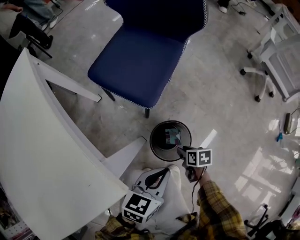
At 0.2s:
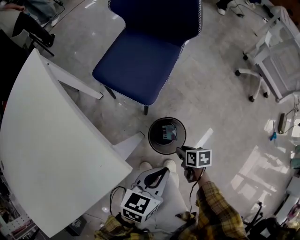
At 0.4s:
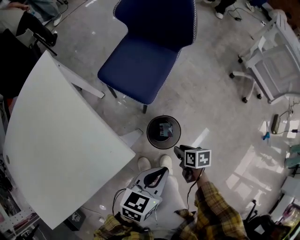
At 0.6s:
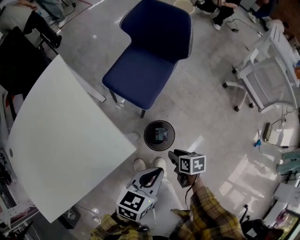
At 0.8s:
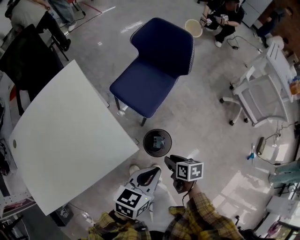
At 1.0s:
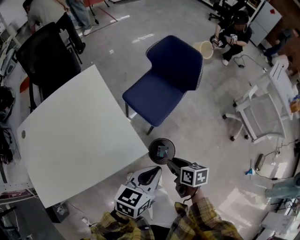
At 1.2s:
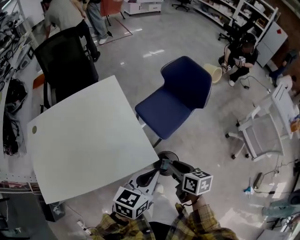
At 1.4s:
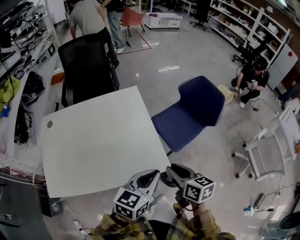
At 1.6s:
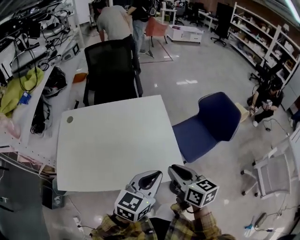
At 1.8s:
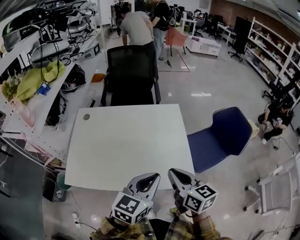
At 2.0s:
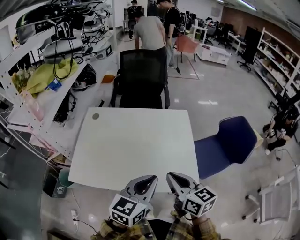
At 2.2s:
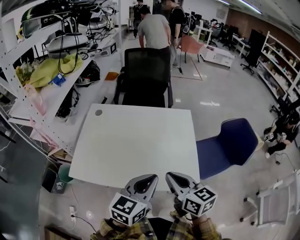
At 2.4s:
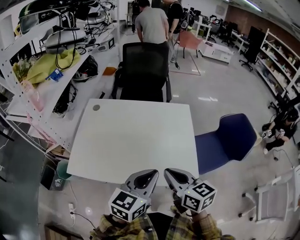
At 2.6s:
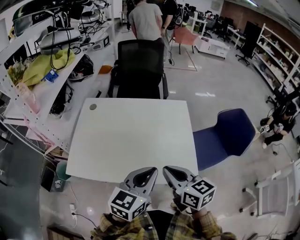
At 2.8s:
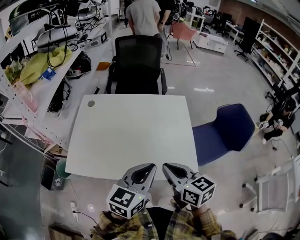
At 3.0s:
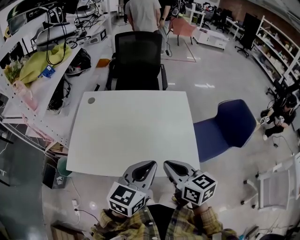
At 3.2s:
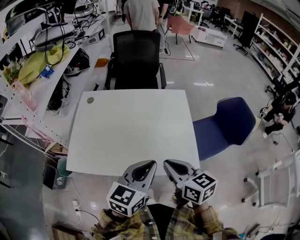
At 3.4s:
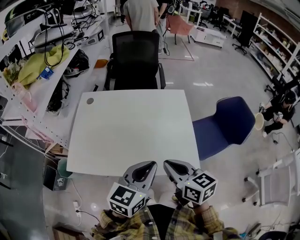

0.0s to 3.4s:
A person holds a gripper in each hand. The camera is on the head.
0.0s to 1.6s: The two grippers go roughly 60 cm upward. The left gripper changes its angle by roughly 40 degrees, while the right gripper tips its fingers upward by roughly 40 degrees.
1.6s to 3.4s: Both grippers move to the left, approximately 15 cm.

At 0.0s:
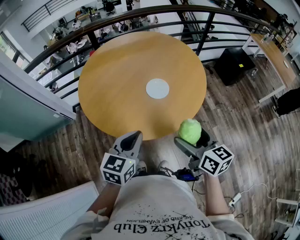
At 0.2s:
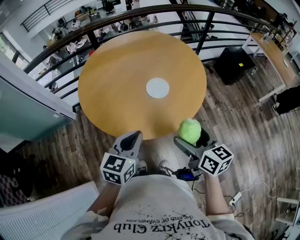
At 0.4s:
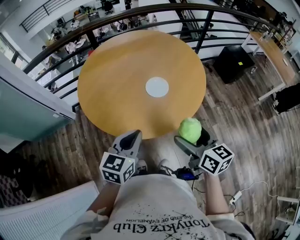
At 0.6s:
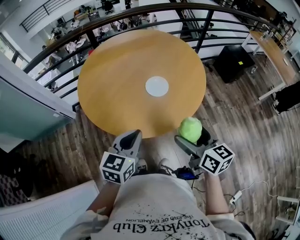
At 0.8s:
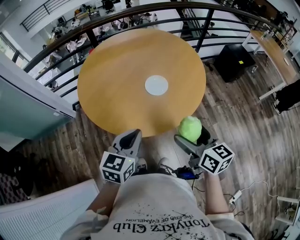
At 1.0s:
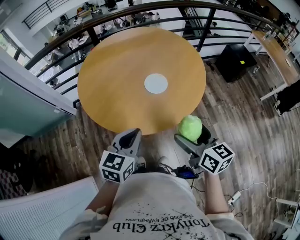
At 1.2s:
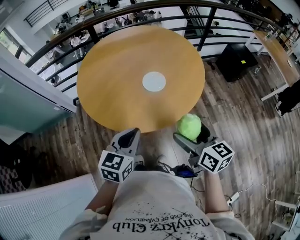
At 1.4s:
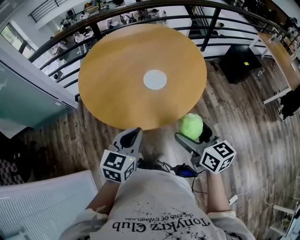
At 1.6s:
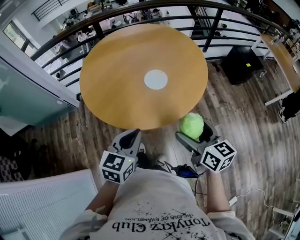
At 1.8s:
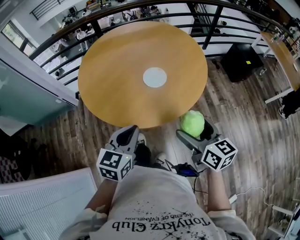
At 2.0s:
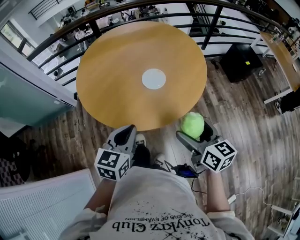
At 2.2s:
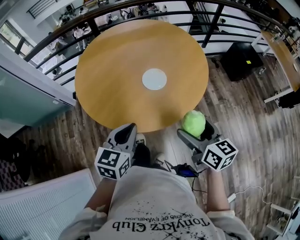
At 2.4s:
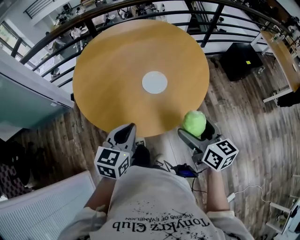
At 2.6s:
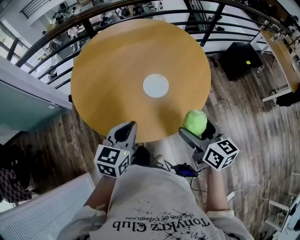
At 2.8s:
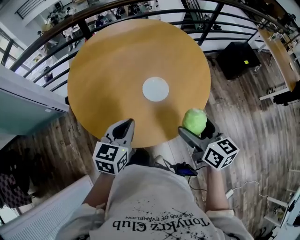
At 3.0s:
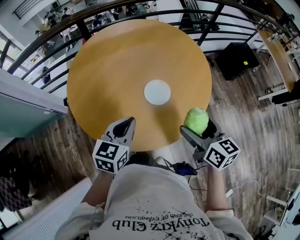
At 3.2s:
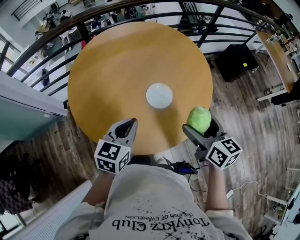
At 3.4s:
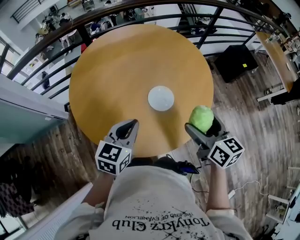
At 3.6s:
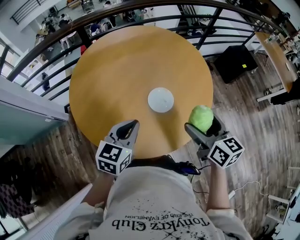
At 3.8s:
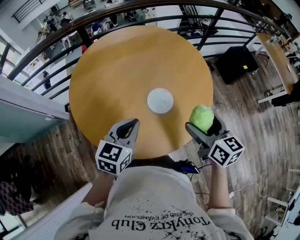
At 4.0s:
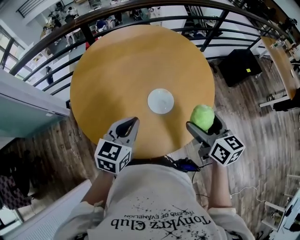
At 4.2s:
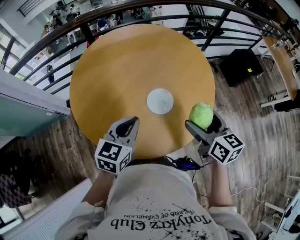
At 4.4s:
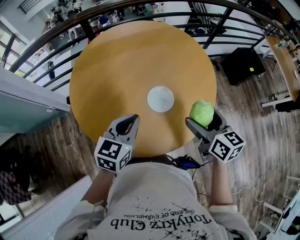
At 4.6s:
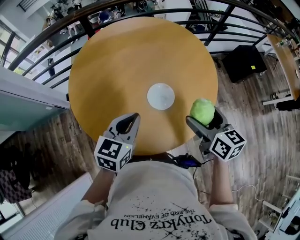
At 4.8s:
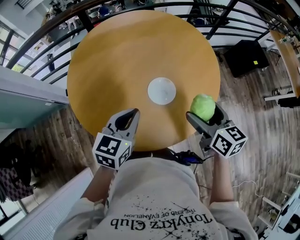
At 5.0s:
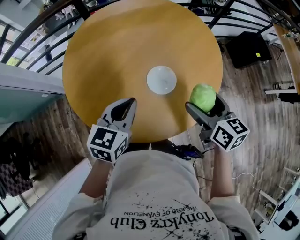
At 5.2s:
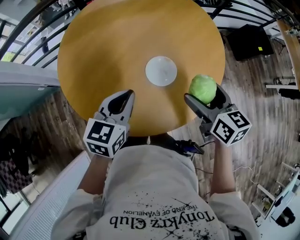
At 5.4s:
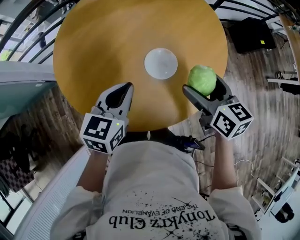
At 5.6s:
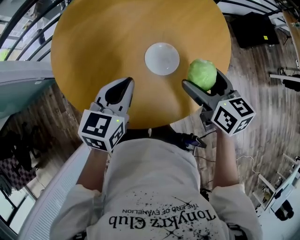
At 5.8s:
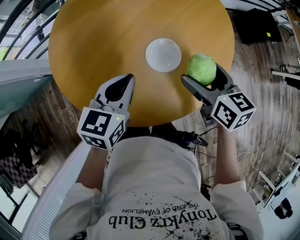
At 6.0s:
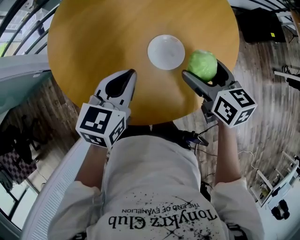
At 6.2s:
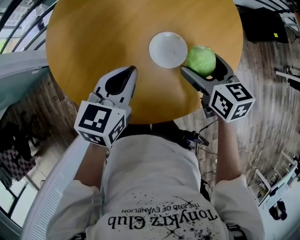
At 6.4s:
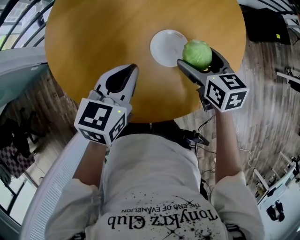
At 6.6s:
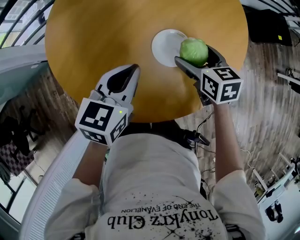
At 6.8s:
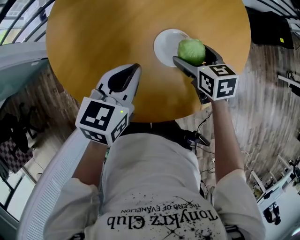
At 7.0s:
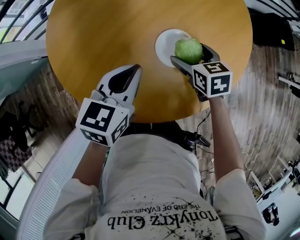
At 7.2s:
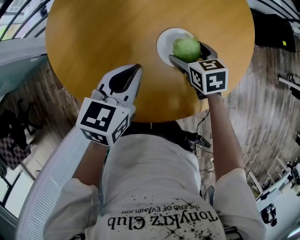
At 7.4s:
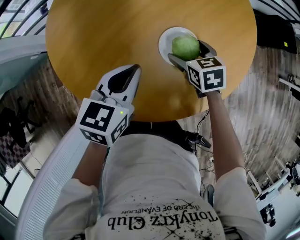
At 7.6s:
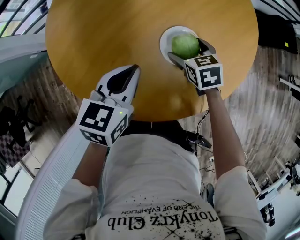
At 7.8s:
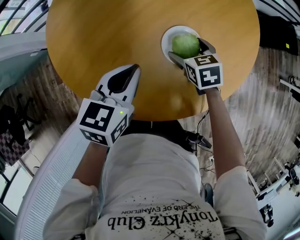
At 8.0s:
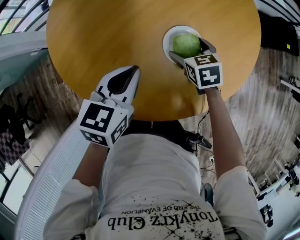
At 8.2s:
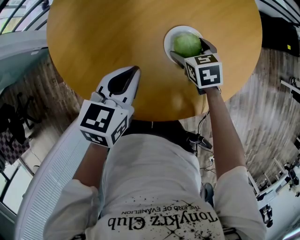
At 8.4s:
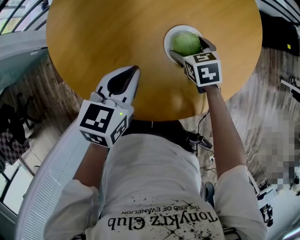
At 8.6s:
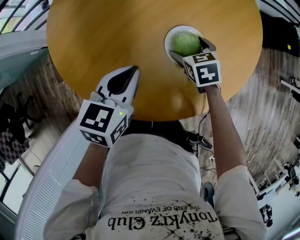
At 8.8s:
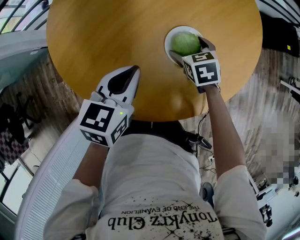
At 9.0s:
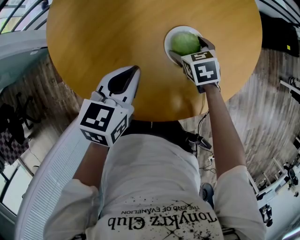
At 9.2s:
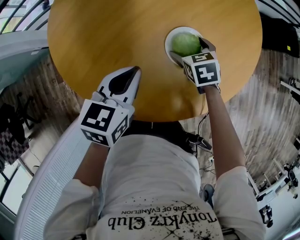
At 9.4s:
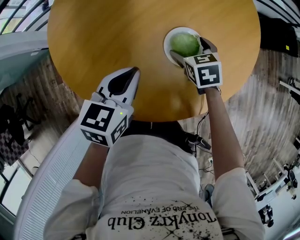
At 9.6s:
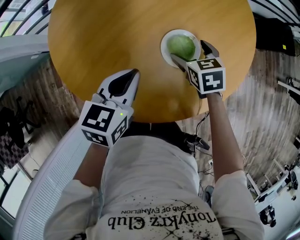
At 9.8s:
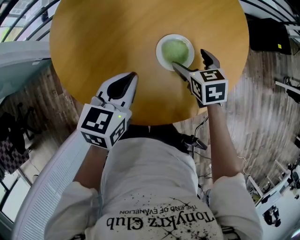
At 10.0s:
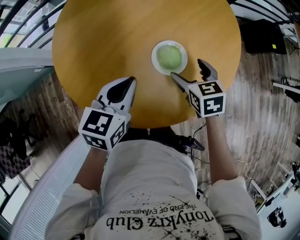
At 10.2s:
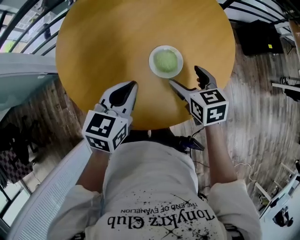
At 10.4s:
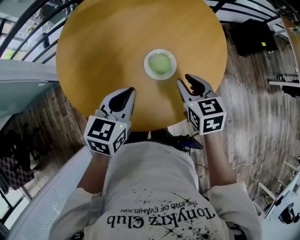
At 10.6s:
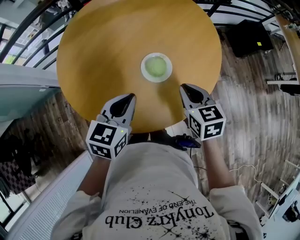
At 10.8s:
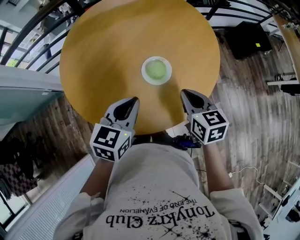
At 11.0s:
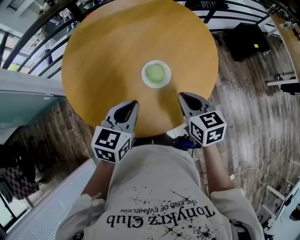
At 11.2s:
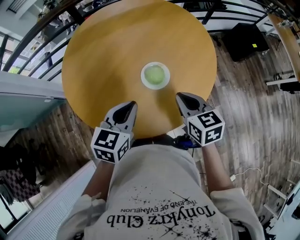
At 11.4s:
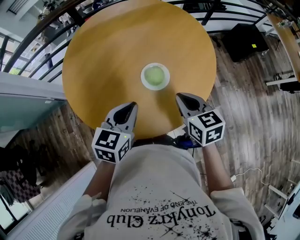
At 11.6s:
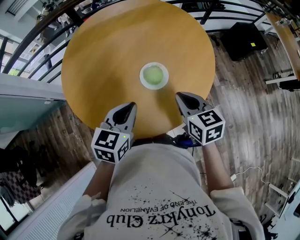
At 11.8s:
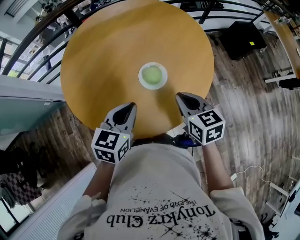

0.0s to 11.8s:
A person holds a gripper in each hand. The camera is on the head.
0.0s to 1.4s: The two grippers go about 5 cm to the right.
1.4s to 3.0s: The grippers both shift forward by about 20 cm.
3.0s to 4.4s: The right gripper goes roughly 10 cm forward. Meanwhile the left gripper heads forward, covering some 5 cm.
4.4s to 6.0s: The grippers both shift downward and forward by some 15 cm.
6.0s to 7.4s: The right gripper goes about 15 cm downward and to the left, and swivels some 20 degrees.
7.4s to 8.8s: There are only small adjustments of the grippers.
8.8s to 10.4s: The left gripper travels upward by some 5 cm, while the right gripper travels upward and backward by some 20 cm, changes its angle by about 20 degrees, and closes up.
10.4s to 11.8s: The right gripper goes roughly 5 cm backward. The left gripper changes place by about 5 cm.

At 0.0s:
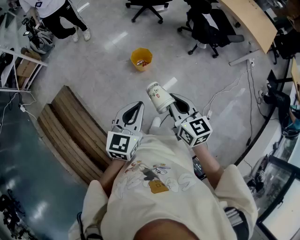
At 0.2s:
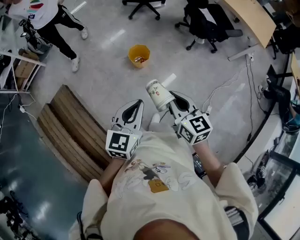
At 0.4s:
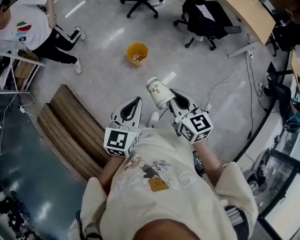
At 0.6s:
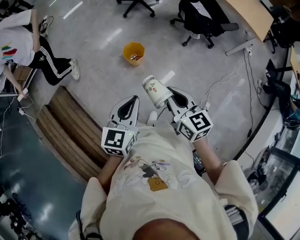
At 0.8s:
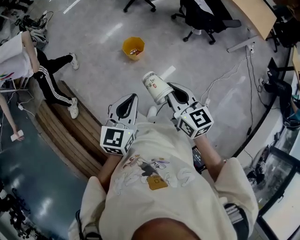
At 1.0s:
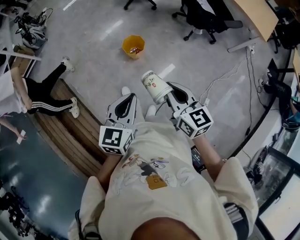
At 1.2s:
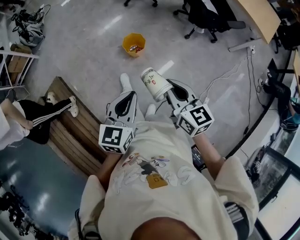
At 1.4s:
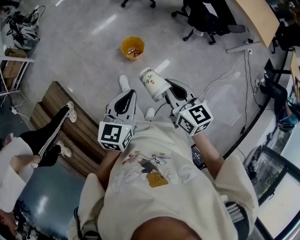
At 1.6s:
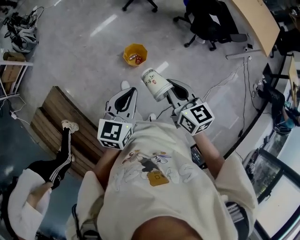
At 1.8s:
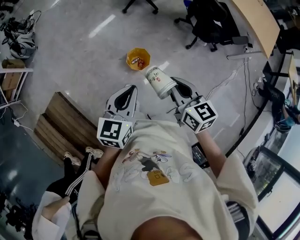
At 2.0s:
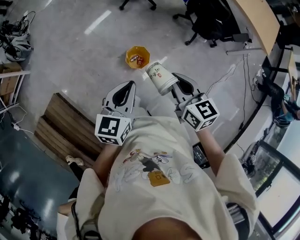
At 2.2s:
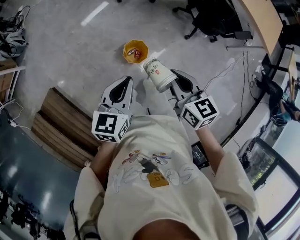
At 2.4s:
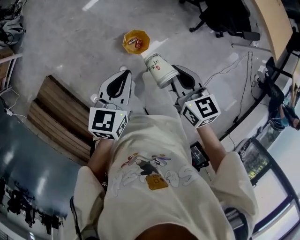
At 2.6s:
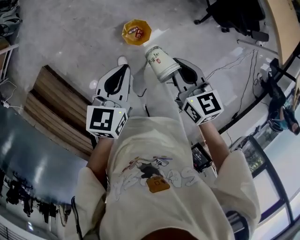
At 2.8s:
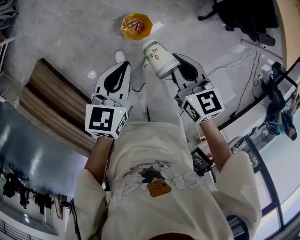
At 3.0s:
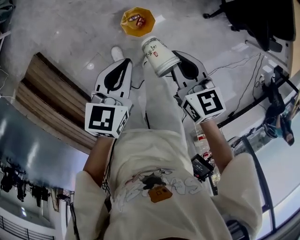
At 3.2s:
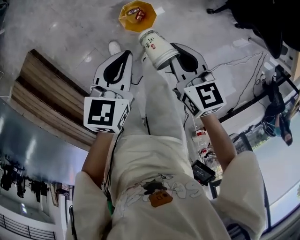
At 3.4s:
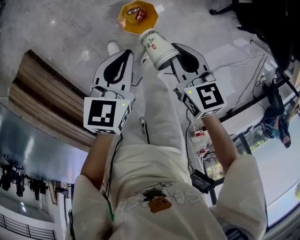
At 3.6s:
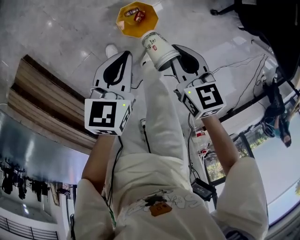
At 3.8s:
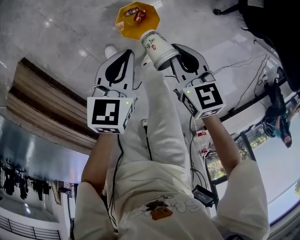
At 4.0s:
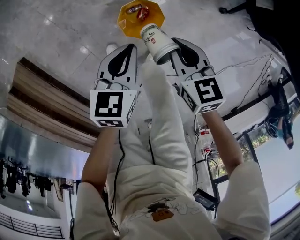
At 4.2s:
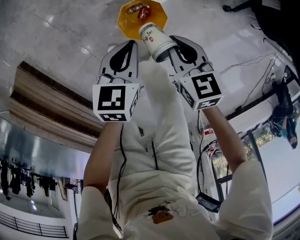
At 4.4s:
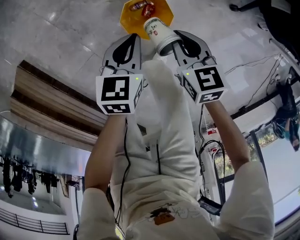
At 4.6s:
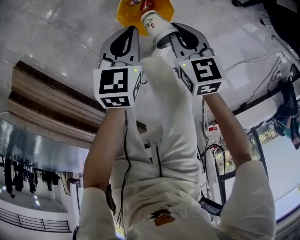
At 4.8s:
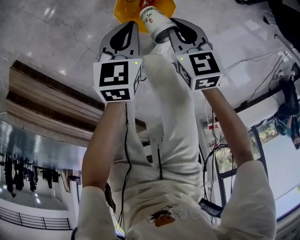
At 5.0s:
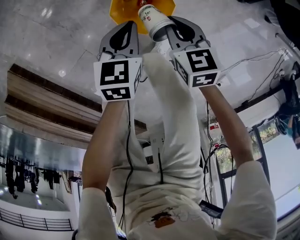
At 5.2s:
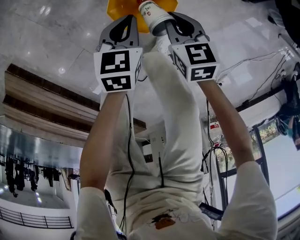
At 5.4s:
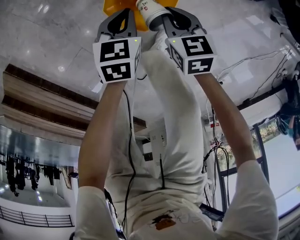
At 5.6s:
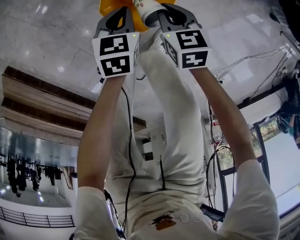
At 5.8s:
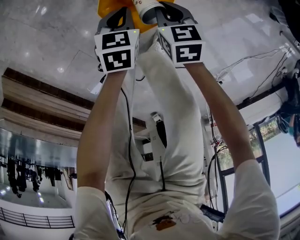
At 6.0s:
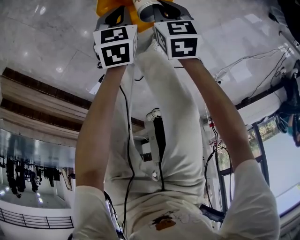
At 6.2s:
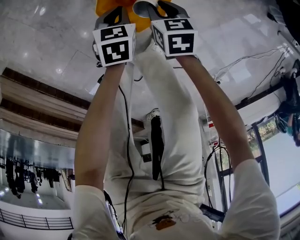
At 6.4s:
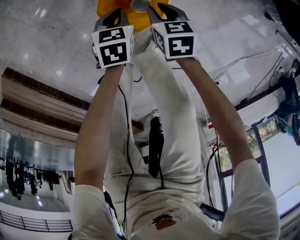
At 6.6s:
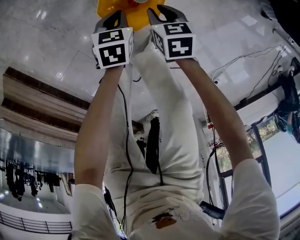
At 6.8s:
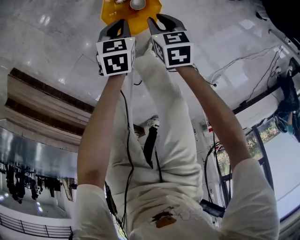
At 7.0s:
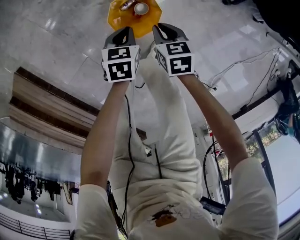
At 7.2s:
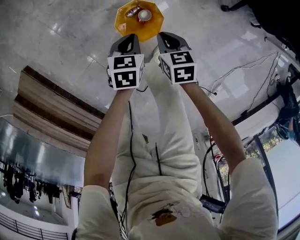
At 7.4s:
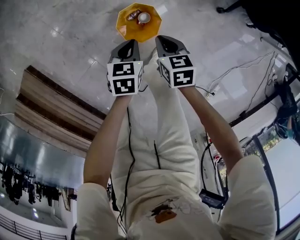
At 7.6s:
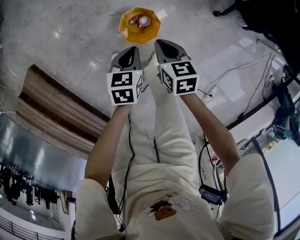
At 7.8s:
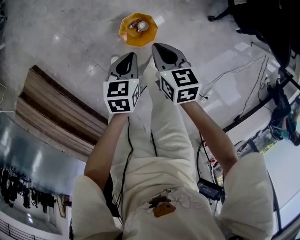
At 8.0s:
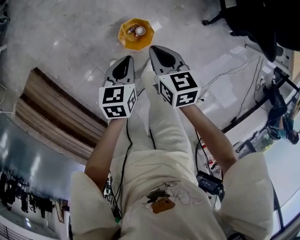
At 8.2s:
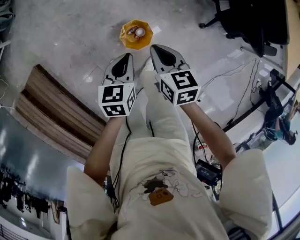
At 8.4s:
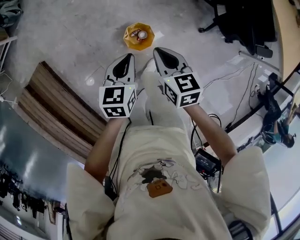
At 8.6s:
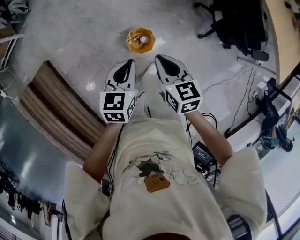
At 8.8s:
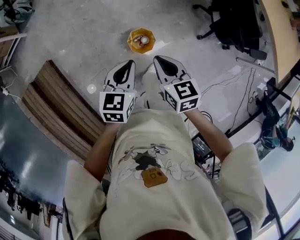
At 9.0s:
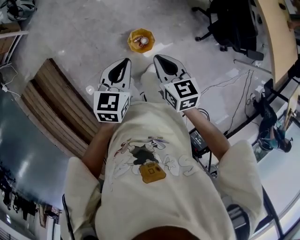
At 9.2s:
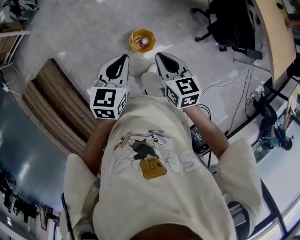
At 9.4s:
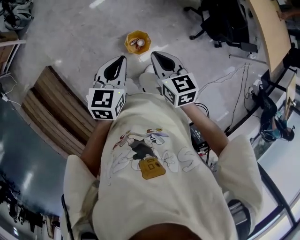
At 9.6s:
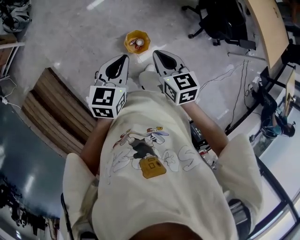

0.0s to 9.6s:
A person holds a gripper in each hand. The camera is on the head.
0.0s to 1.6s: Both grippers move forward, approximately 20 cm.
1.6s to 3.2s: The two grippers go roughly 40 cm forward and downward. The left gripper changes its angle by about 20 degrees. The right gripper rotates approximately 20 degrees.
3.2s to 4.8s: Both grippers travel together downward, some 40 cm.
4.8s to 6.4s: Both grippers move downward, some 15 cm. The right gripper opens up.
6.4s to 8.0s: Both grippers move upward, roughly 50 cm. The right gripper closes up.
8.0s to 9.6s: Both grippers move upward, approximately 30 cm. The left gripper swivels roughly 20 degrees.
